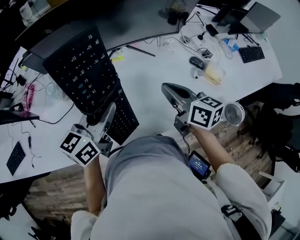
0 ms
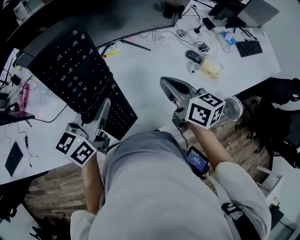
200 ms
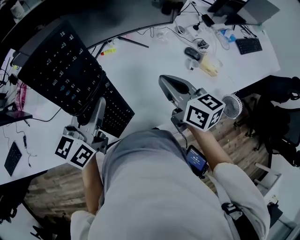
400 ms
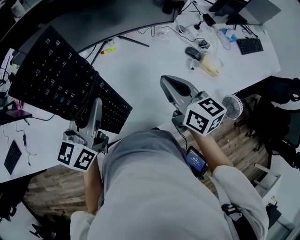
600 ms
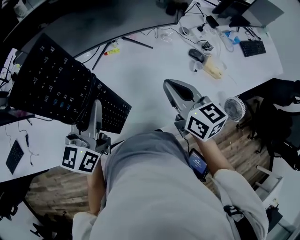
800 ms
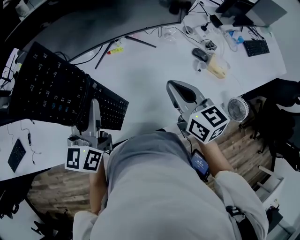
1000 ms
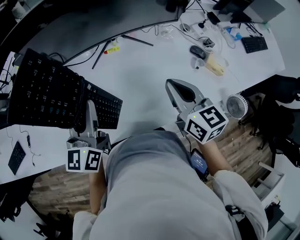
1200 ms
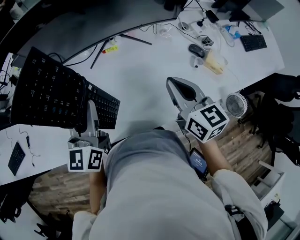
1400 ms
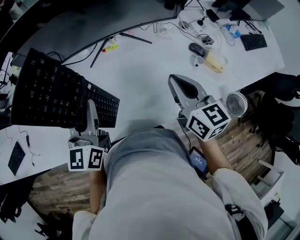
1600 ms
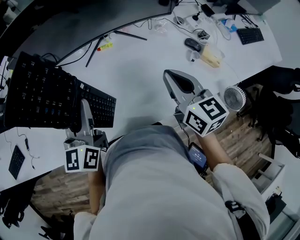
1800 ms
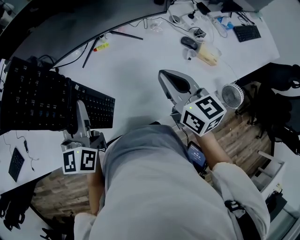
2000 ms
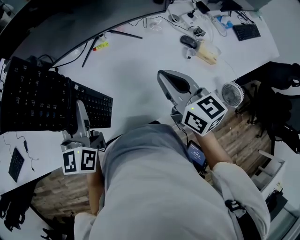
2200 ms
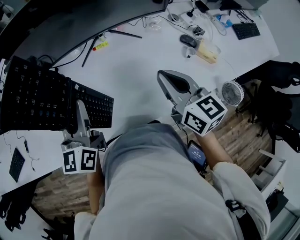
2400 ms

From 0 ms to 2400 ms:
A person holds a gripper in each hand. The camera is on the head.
From 0 ms to 1200 ms: The left gripper travels to the left by roughly 5 cm, and rotates some 30 degrees.
From 1200 ms to 2400 ms: The grippers stay close to where they were, moving slightly.

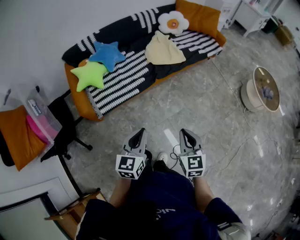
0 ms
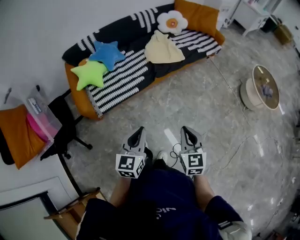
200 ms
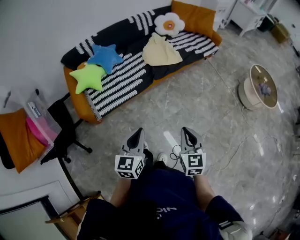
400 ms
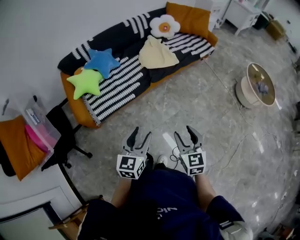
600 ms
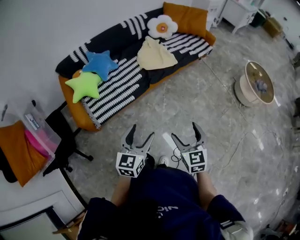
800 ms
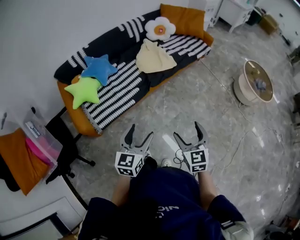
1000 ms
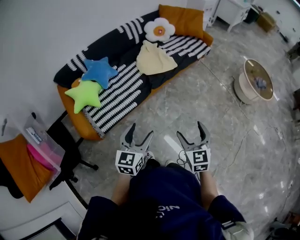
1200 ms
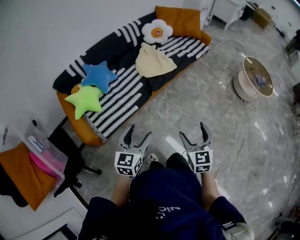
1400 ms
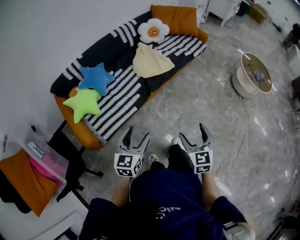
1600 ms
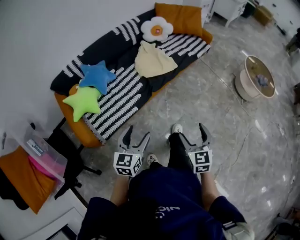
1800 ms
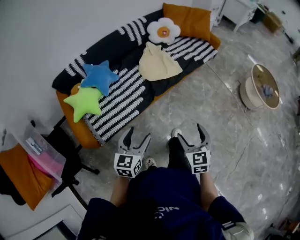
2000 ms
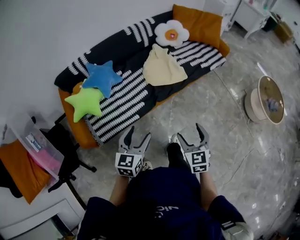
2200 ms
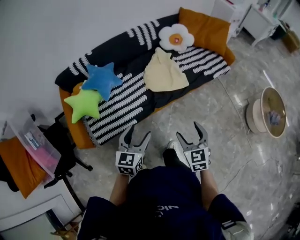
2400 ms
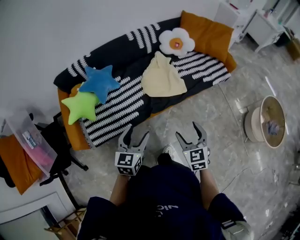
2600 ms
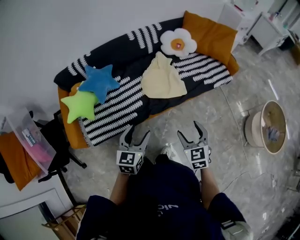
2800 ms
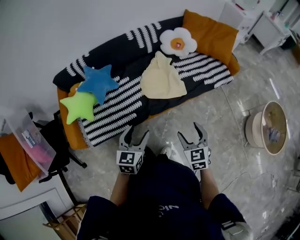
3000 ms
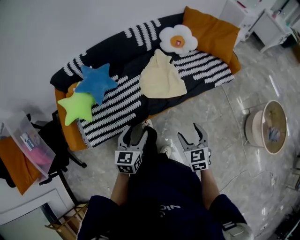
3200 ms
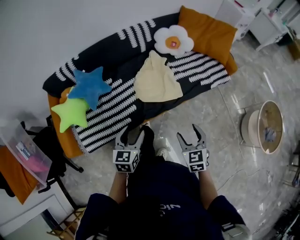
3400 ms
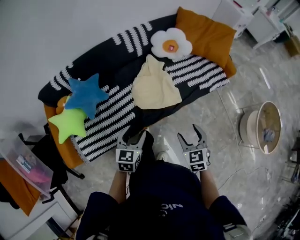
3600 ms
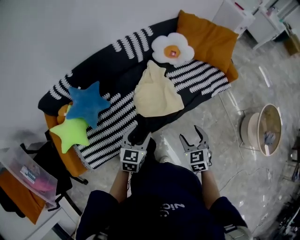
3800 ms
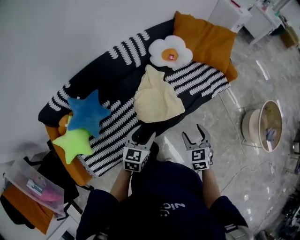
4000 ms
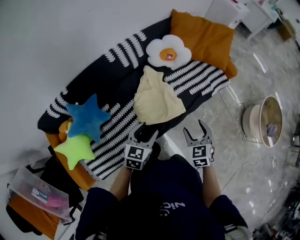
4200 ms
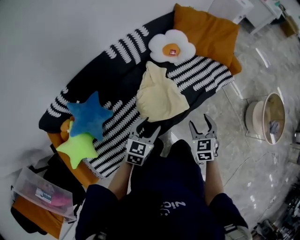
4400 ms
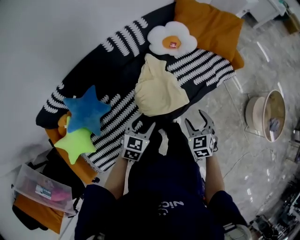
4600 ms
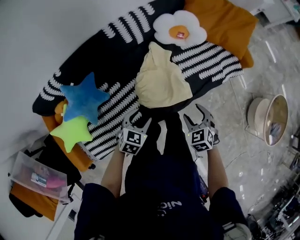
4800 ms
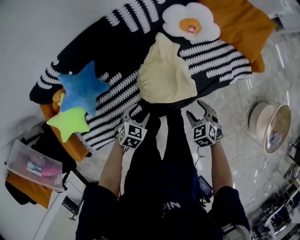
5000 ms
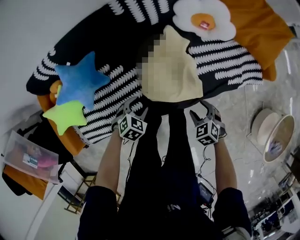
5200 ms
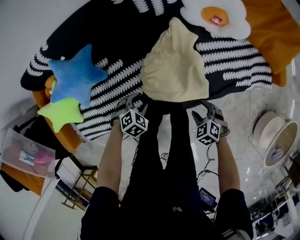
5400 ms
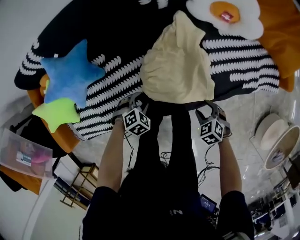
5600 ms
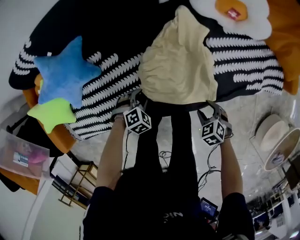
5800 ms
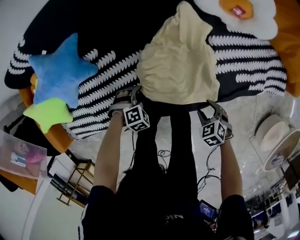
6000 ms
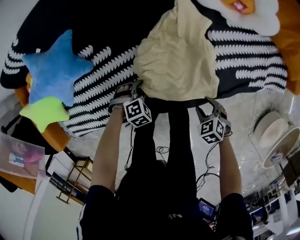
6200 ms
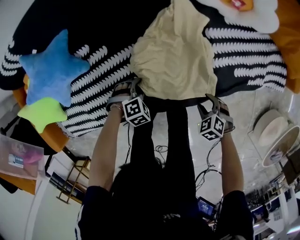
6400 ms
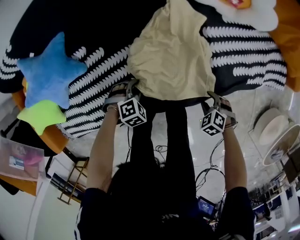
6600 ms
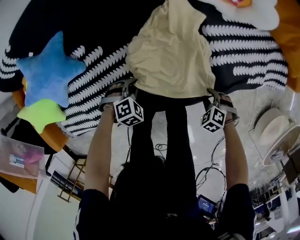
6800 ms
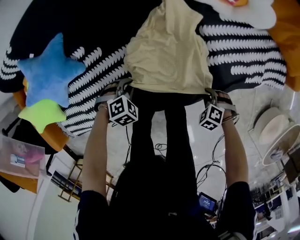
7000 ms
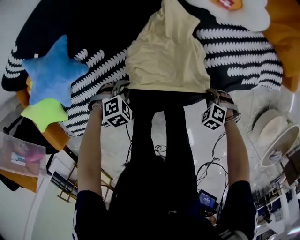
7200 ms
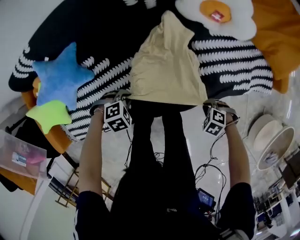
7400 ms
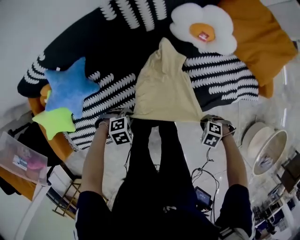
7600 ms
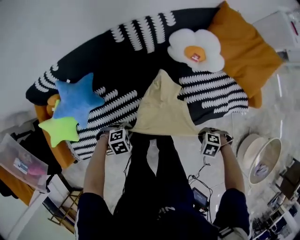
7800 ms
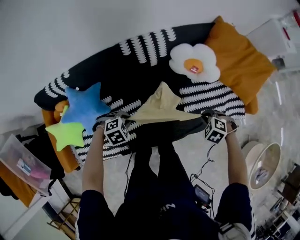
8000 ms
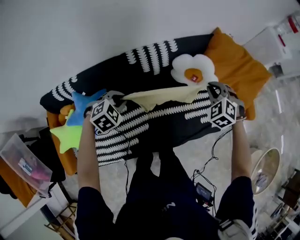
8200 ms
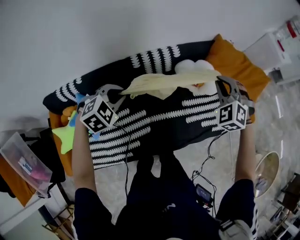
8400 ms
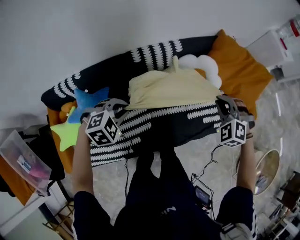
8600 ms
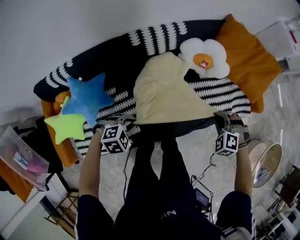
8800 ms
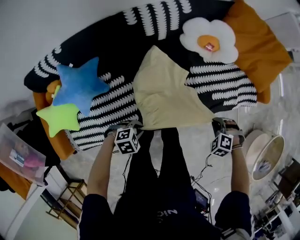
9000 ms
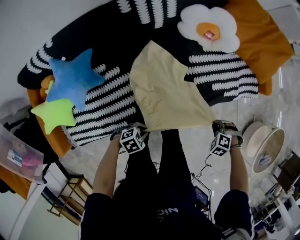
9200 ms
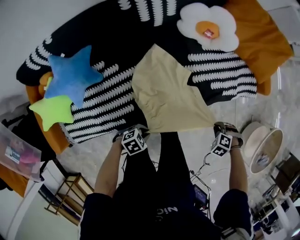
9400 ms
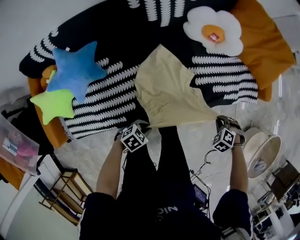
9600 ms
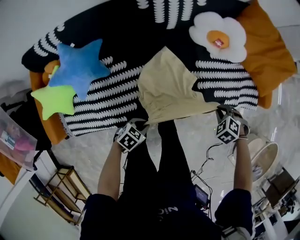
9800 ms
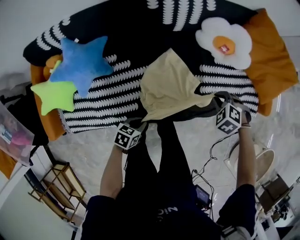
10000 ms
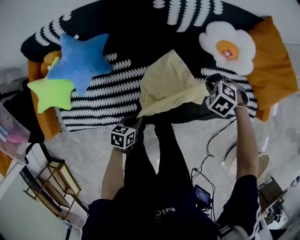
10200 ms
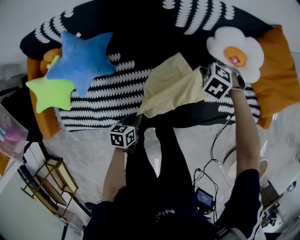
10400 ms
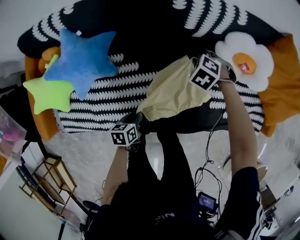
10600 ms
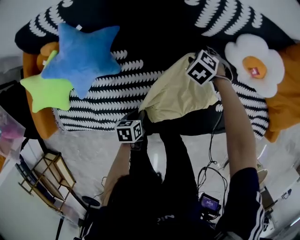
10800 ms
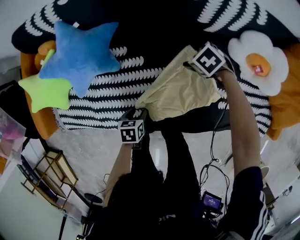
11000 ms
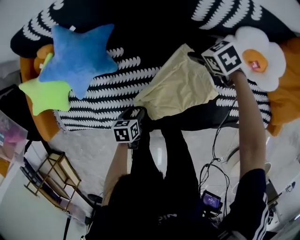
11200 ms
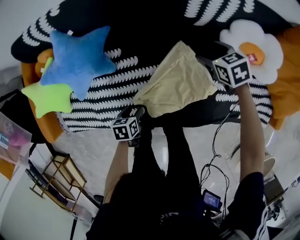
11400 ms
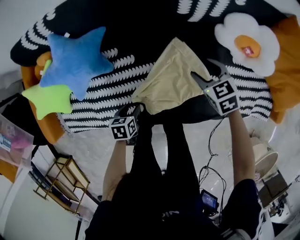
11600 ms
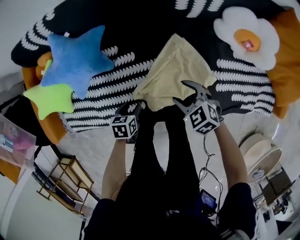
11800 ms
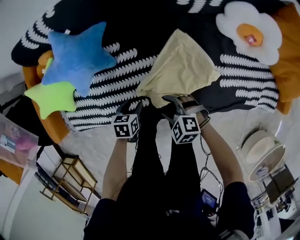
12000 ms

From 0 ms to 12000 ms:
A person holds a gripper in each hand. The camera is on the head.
From 0 ms to 1600 ms: The left gripper travels forward and to the left by approximately 10 cm, and opens; the right gripper is displaced forward by roughly 5 cm, and opens its fingers.
From 1600 ms to 3000 ms: The right gripper moves forward, approximately 35 cm, and changes its angle by about 30 degrees. Meanwhile the left gripper goes some 30 cm forward and to the right, and turns by some 20 degrees.
From 3000 ms to 4400 ms: The left gripper shifts by about 30 cm, and rotates roughly 30 degrees. Meanwhile the right gripper moves roughly 25 cm, and swivels about 20 degrees.
From 4400 ms to 6000 ms: Both grippers move downward, approximately 40 cm. The left gripper tilts its fingers roughly 50 degrees downward, while the right gripper points its fingers about 30 degrees further downward.
From 6000 ms to 7600 ms: The right gripper is displaced upward by some 10 cm, rotates roughly 30 degrees, and closes. Meanwhile the left gripper goes about 15 cm upward.
From 7600 ms to 9000 ms: The right gripper travels upward and back again, roughly 40 cm each way, and turns by some 30 degrees. Meanwhile the left gripper moves approximately 35 cm upward and comes back.
From 9000 ms to 10400 ms: The left gripper moves about 10 cm, and twists roughly 80 degrees counterclockwise, seen from behind. Meanwhile the right gripper shifts by roughly 35 cm.
From 10400 ms to 12000 ms: The right gripper moves up and down over roughly 10 cm, changing direction 2 times, changes its angle by roughly 30 degrees, and opens; the left gripper shifts by approximately 10 cm, and opens up.

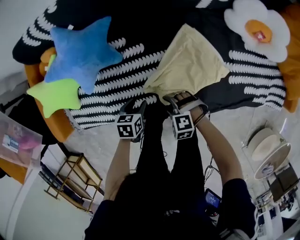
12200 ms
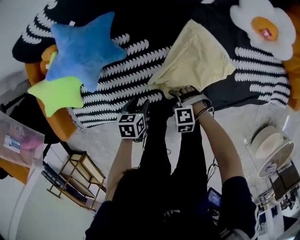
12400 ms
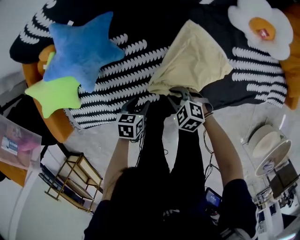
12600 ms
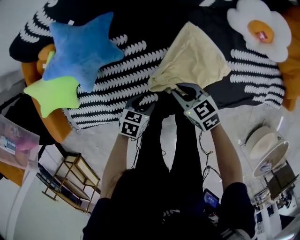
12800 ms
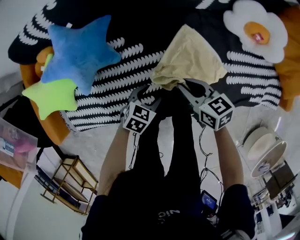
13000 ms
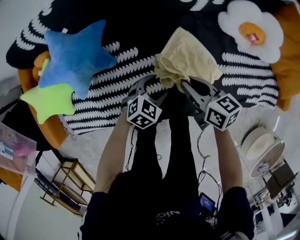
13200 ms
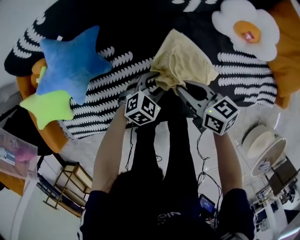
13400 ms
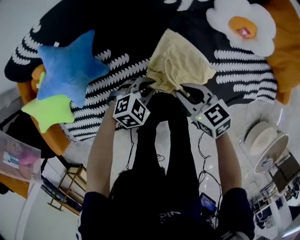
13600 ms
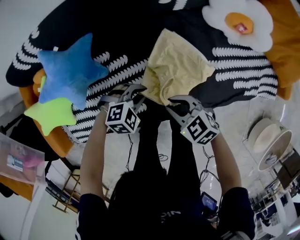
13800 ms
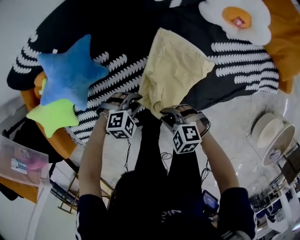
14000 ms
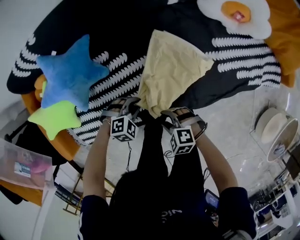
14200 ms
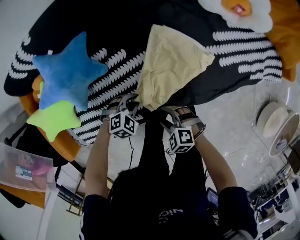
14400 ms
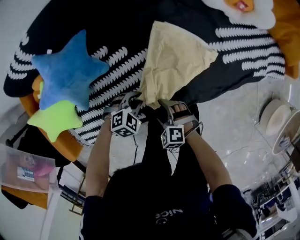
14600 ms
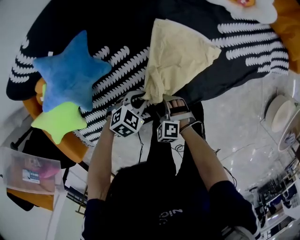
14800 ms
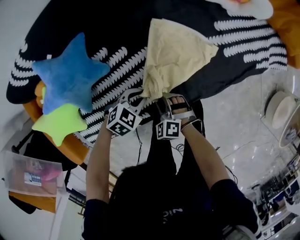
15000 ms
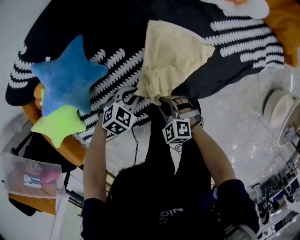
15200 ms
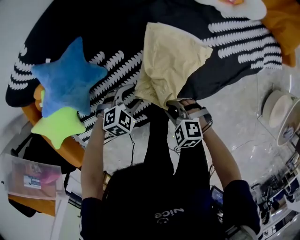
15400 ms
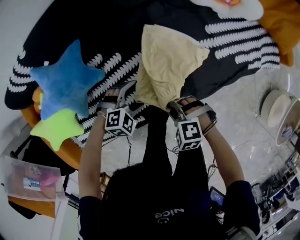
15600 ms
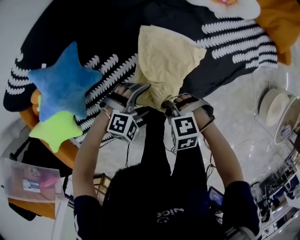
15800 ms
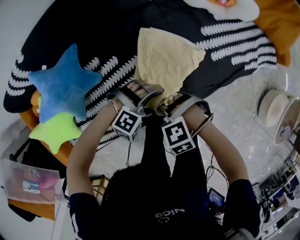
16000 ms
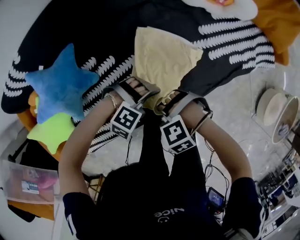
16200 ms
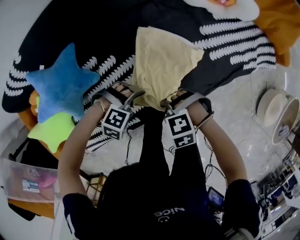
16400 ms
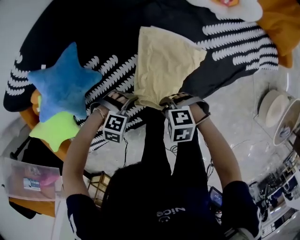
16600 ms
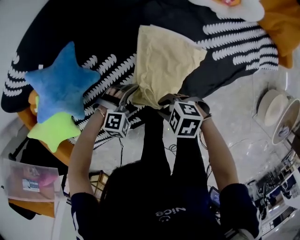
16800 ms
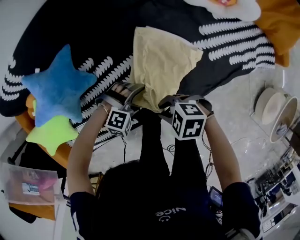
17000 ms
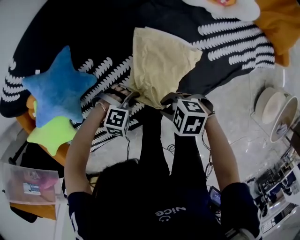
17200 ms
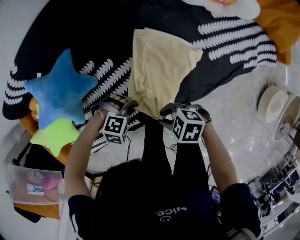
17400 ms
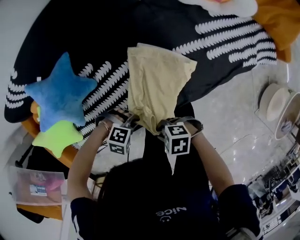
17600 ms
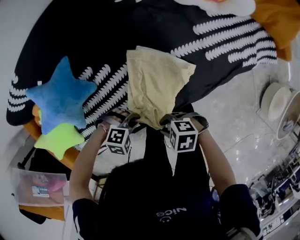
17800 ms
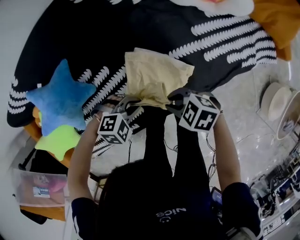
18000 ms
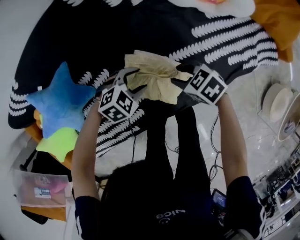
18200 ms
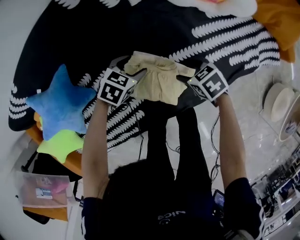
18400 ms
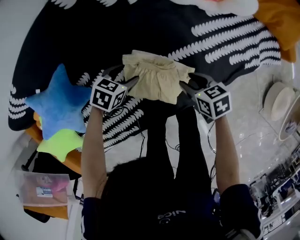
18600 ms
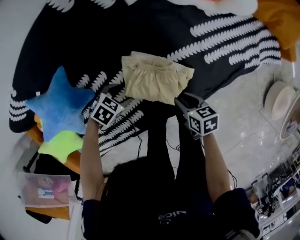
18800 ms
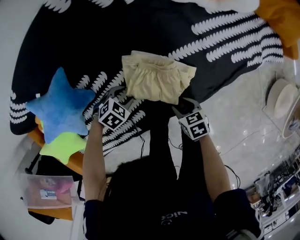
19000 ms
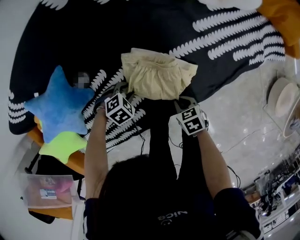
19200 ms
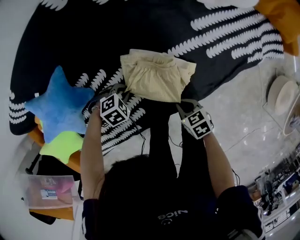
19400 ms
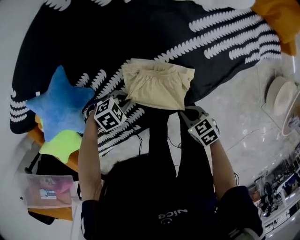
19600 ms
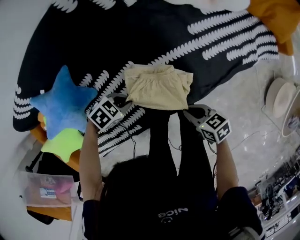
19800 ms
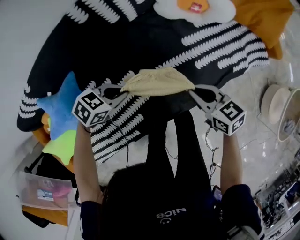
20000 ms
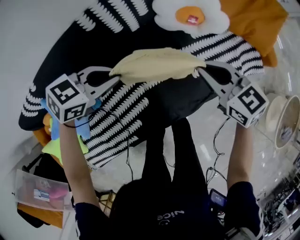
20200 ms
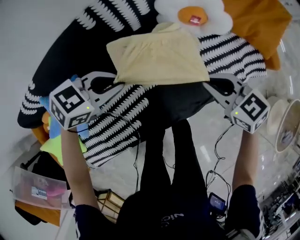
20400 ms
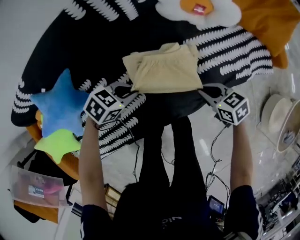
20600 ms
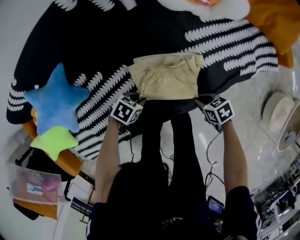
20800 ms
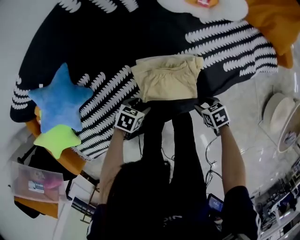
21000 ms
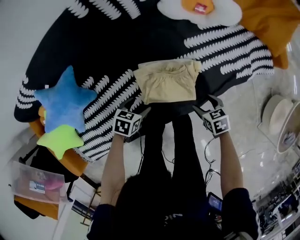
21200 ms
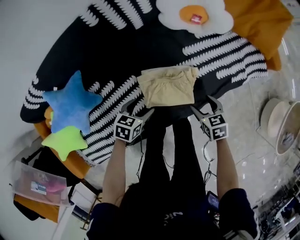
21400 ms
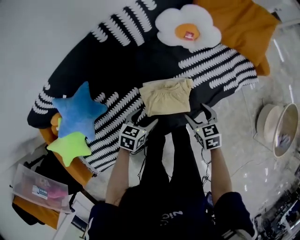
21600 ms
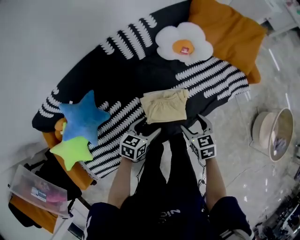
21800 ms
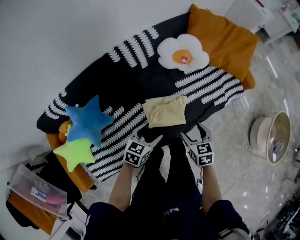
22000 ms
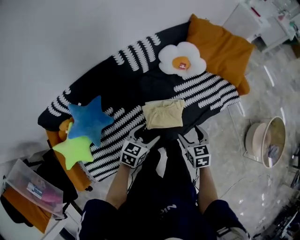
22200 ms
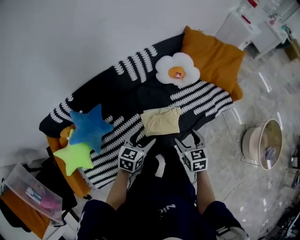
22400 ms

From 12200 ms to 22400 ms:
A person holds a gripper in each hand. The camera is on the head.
From 12200 ms to 13600 ms: The left gripper moves some 20 cm, twists some 70 degrees clockwise, seen from behind, and closes, while the right gripper ends up roughly 20 cm from where it was, rotates around the line of its fingers by about 60 degrees, clockwise from behind, and closes its fingers.
From 13600 ms to 15200 ms: The right gripper changes place by roughly 20 cm, turns by about 40 degrees, and opens and closes again. The left gripper ends up roughly 10 cm from where it was.
From 15200 ms to 16600 ms: The left gripper rolls clockwise, seen from behind, by some 50 degrees, and opens its fingers. Meanwhile the right gripper shifts by about 5 cm, and changes its angle by approximately 30 degrees.
From 16600 ms to 18000 ms: The left gripper moves forward and backward over about 10 cm, changing direction 2 times, turns by some 20 degrees, and closes up. Meanwhile the right gripper shifts some 10 cm to the left and backward, and swivels roughly 30 degrees.
From 18000 ms to 19400 ms: Both grippers move downward, roughly 10 cm. The right gripper turns by approximately 40 degrees, and opens, then closes again. Meanwhile the left gripper rotates roughly 20 degrees, and opens and closes again.
From 19400 ms to 21000 ms: The right gripper reaches roughly 30 cm upward, then returns, and opens its fingers. Meanwhile the left gripper goes upward and returns, approximately 30 cm each way, rotates around the line of its fingers by roughly 50 degrees, counterclockwise from behind, and opens its fingers.
From 21000 ms to 22400 ms: The grippers both shift upward by some 35 cm. The left gripper swivels some 40 degrees, while the right gripper swivels about 50 degrees, and opens up.
